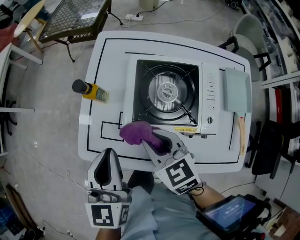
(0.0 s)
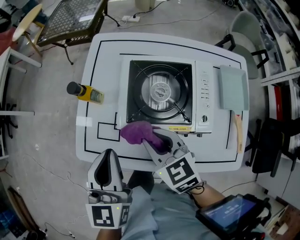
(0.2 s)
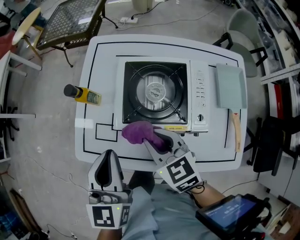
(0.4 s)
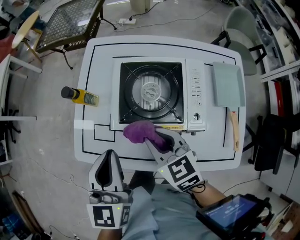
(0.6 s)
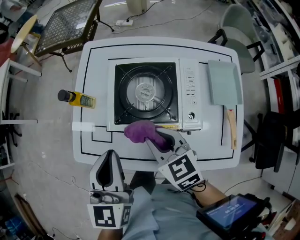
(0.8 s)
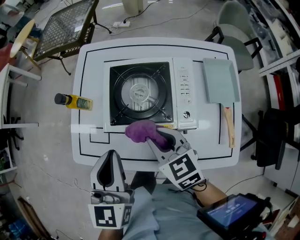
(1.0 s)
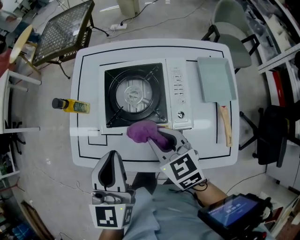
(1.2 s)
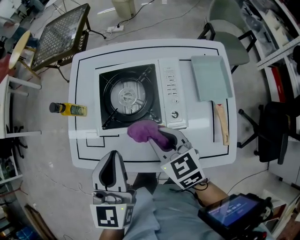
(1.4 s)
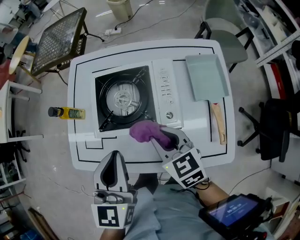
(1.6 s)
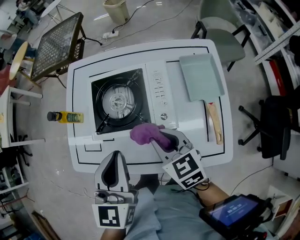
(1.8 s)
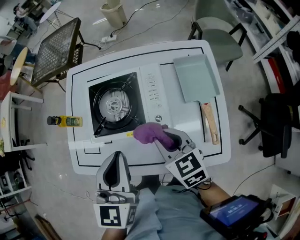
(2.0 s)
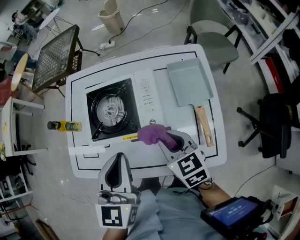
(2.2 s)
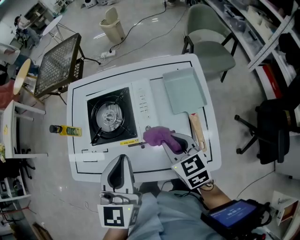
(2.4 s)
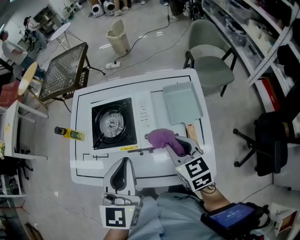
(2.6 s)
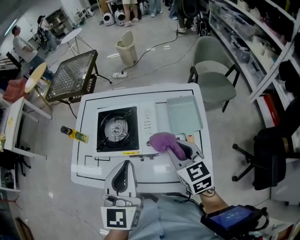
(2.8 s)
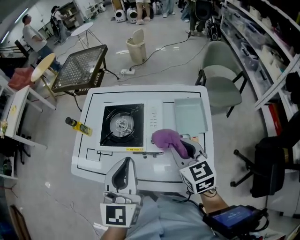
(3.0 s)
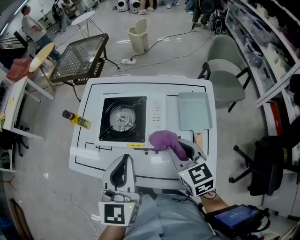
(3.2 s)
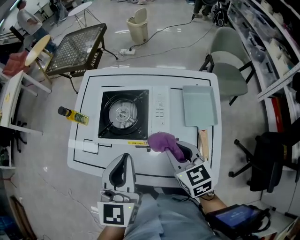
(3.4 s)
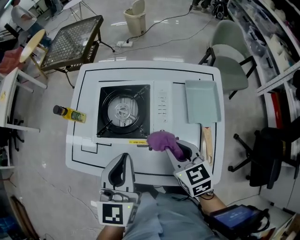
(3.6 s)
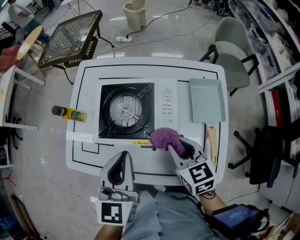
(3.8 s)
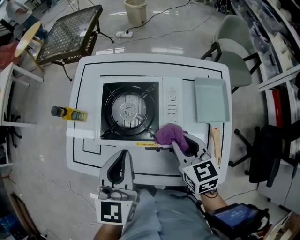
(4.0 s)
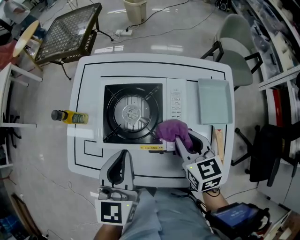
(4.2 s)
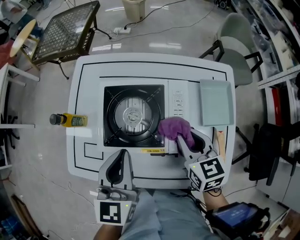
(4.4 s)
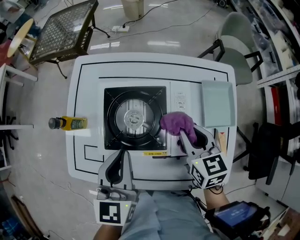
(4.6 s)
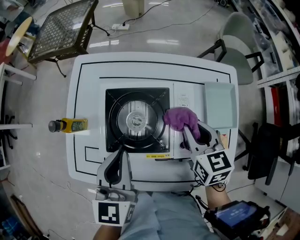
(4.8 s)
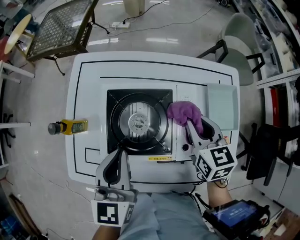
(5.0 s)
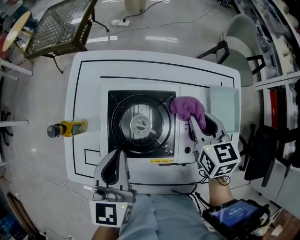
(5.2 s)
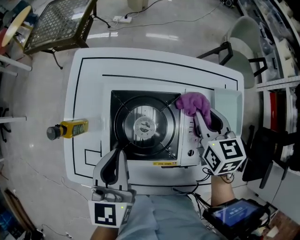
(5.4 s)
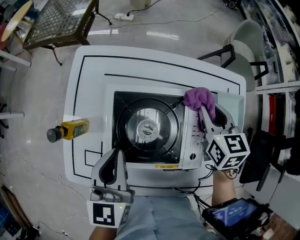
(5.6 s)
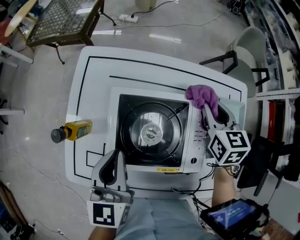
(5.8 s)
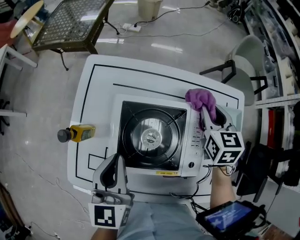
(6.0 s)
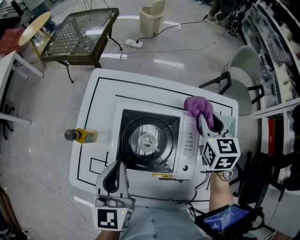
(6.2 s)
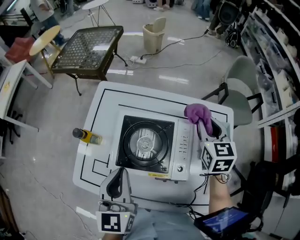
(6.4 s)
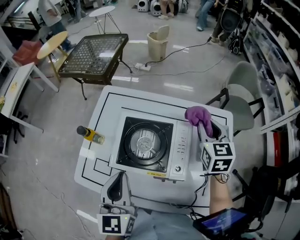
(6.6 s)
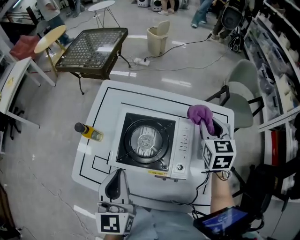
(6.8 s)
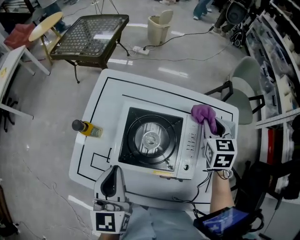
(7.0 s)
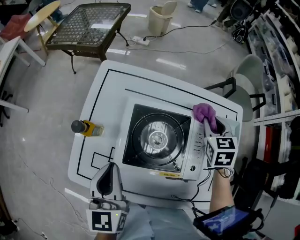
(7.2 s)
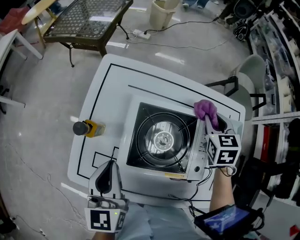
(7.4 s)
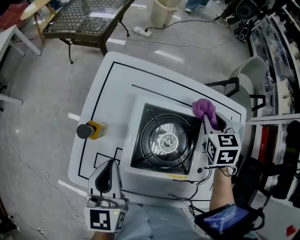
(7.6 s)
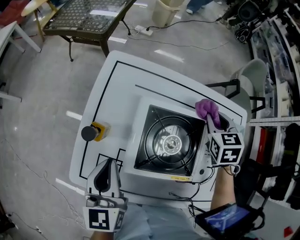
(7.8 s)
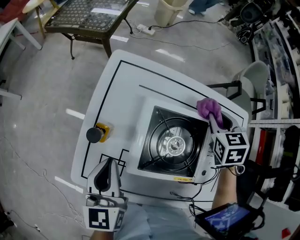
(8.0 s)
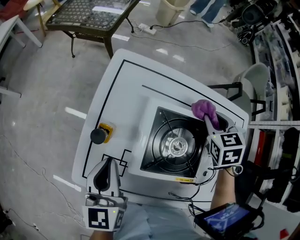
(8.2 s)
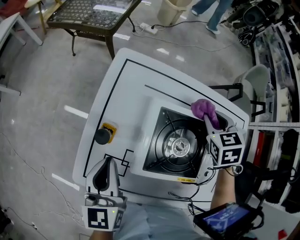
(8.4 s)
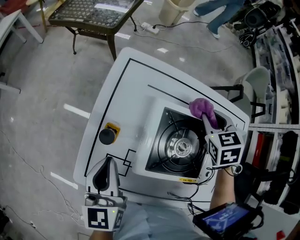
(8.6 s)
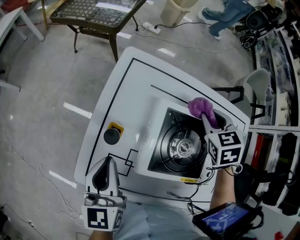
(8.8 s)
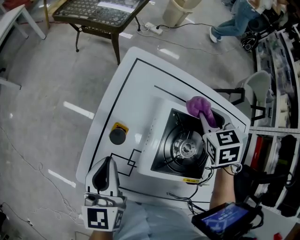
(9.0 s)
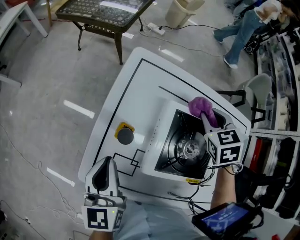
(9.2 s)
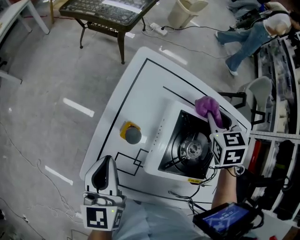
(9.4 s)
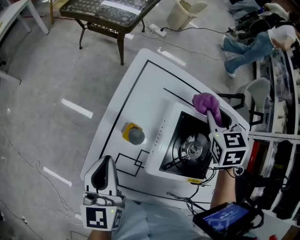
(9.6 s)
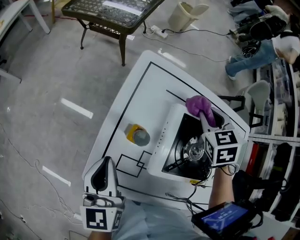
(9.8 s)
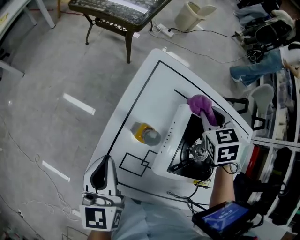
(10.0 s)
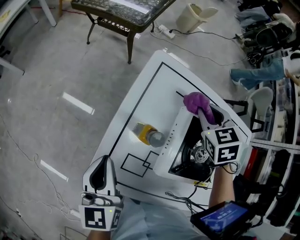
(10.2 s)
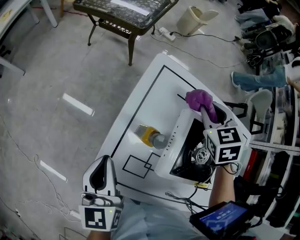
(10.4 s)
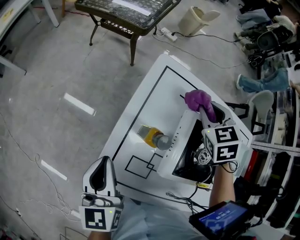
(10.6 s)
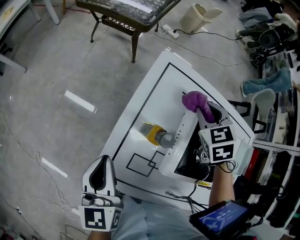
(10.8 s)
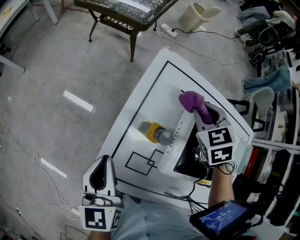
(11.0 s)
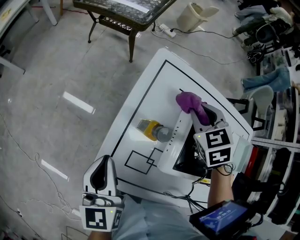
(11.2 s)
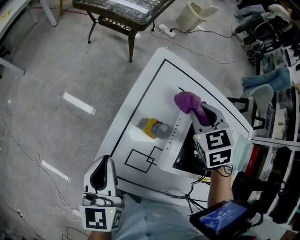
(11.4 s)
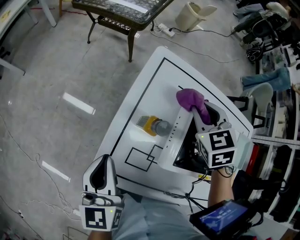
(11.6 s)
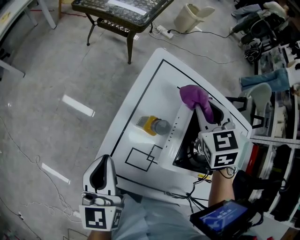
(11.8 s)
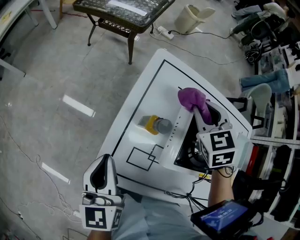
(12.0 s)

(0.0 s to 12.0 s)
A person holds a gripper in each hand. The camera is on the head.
0.0 s - 1.6 s: The grippers both shift to the right by some 15 cm.
1.6 s - 3.0 s: The right gripper travels to the right and upward by roughly 20 cm; the left gripper moves to the right, upward and backward, approximately 15 cm.
3.0 s - 4.4 s: The right gripper travels downward, forward and to the left by some 15 cm. The left gripper goes approximately 20 cm forward, downward and to the left.
4.4 s - 6.0 s: The right gripper shifts about 20 cm forward; the left gripper is displaced to the left and forward by some 10 cm.
6.0 s - 7.6 s: The right gripper shifts approximately 5 cm to the left, and reaches roughly 10 cm upward, then returns. Meanwhile the left gripper shifts about 10 cm to the left.
7.6 s - 9.0 s: The two grippers go approximately 10 cm to the left.
9.0 s - 10.4 s: Both grippers move to the left, about 10 cm.
10.4 s - 12.0 s: The right gripper changes place by approximately 5 cm.

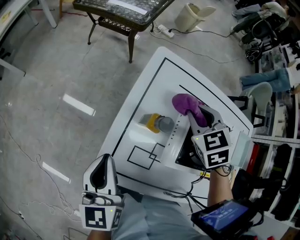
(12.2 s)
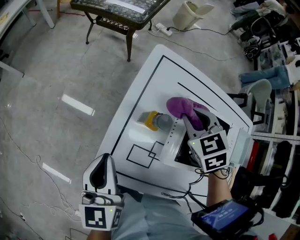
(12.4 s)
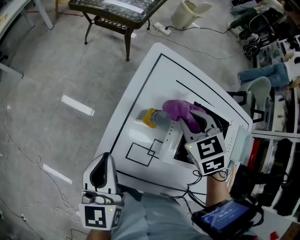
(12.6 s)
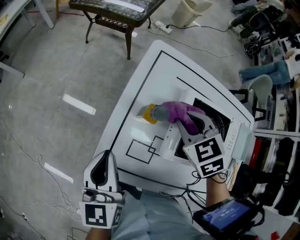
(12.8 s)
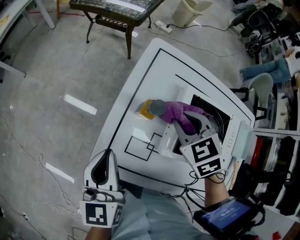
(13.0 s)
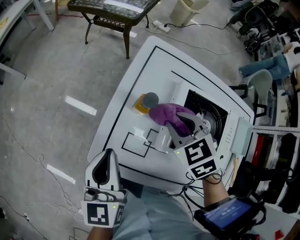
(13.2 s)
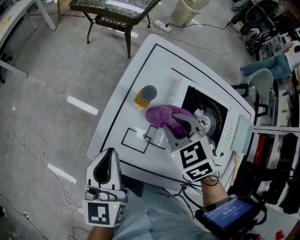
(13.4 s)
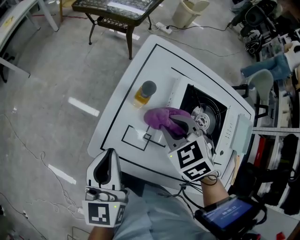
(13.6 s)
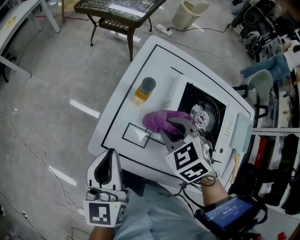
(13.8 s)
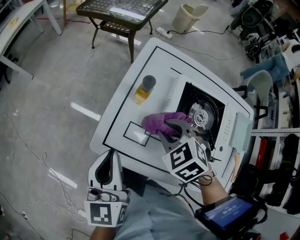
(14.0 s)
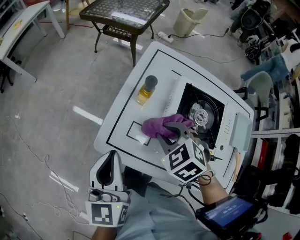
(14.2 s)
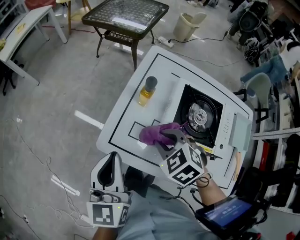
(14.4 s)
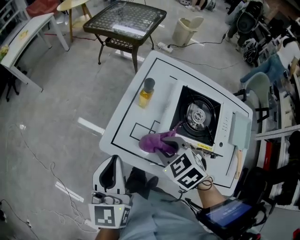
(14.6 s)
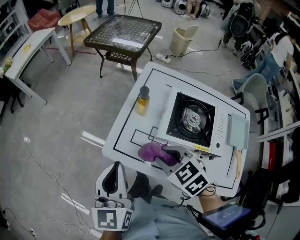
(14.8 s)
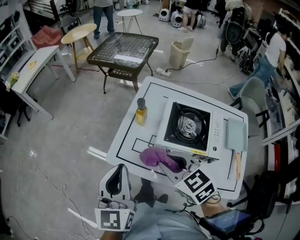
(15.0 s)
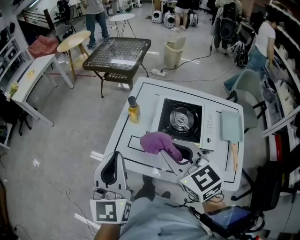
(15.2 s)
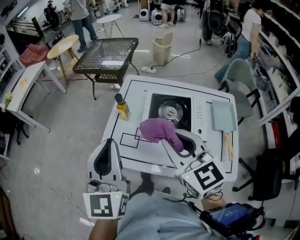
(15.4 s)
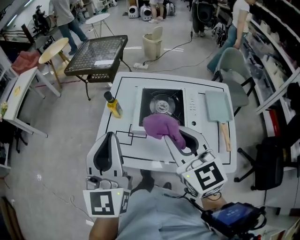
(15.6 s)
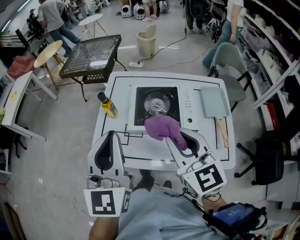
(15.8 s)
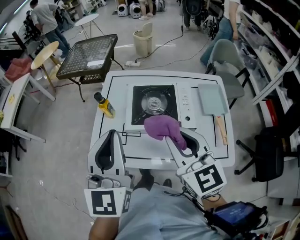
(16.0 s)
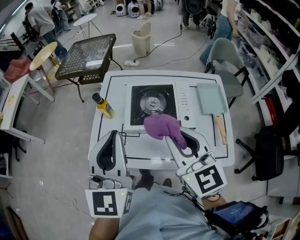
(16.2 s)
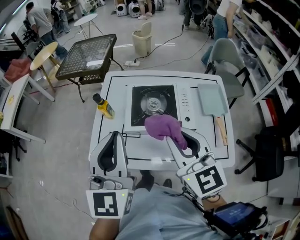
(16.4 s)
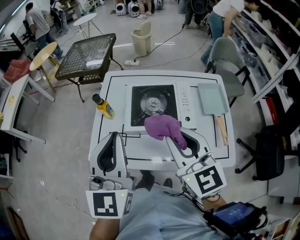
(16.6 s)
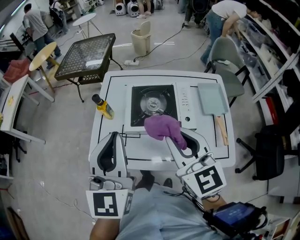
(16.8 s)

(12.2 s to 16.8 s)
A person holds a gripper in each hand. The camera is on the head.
12.2 s - 13.8 s: The right gripper shifts some 15 cm backward and to the left. The left gripper is displaced backward by approximately 10 cm.
13.8 s - 15.2 s: Both grippers move upward and backward, some 25 cm. The left gripper rotates roughly 20 degrees, while the right gripper tilts its fingers some 40 degrees upward.
15.2 s - 16.8 s: The grippers both shift to the right by roughly 10 cm. The right gripper rotates roughly 30 degrees.

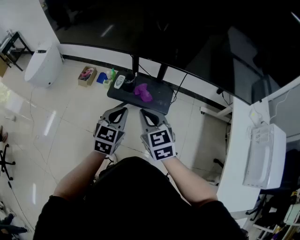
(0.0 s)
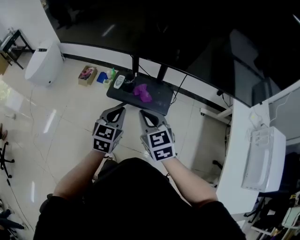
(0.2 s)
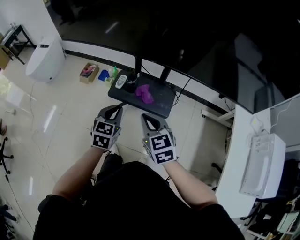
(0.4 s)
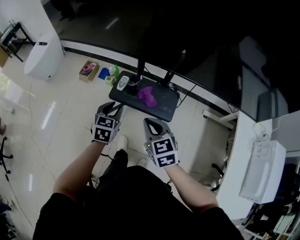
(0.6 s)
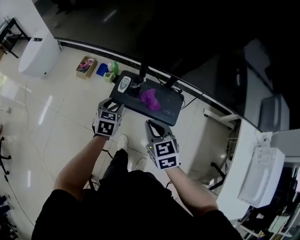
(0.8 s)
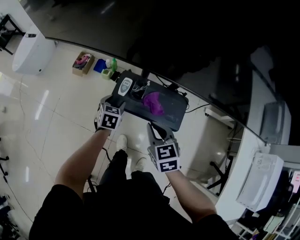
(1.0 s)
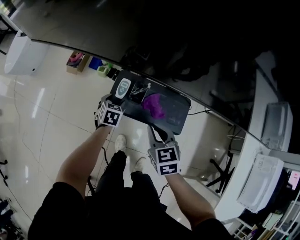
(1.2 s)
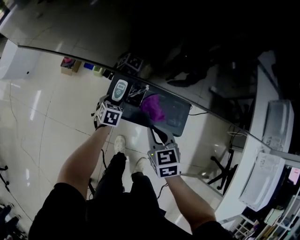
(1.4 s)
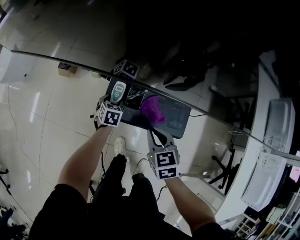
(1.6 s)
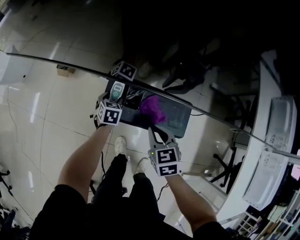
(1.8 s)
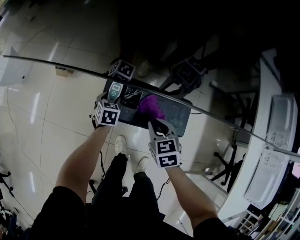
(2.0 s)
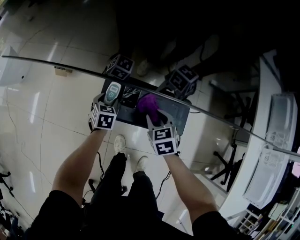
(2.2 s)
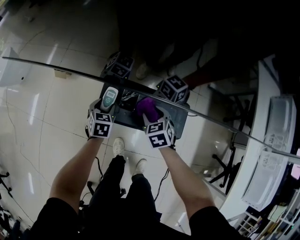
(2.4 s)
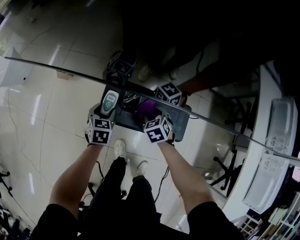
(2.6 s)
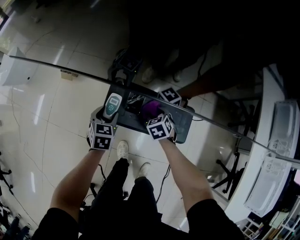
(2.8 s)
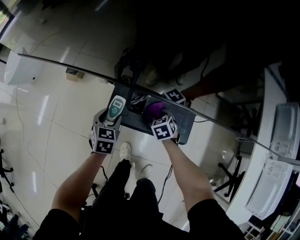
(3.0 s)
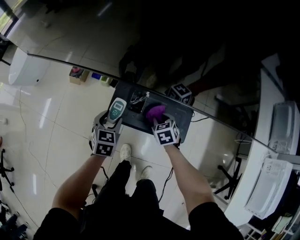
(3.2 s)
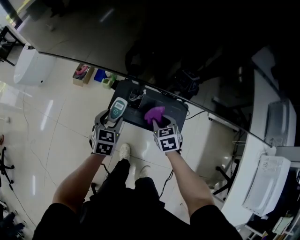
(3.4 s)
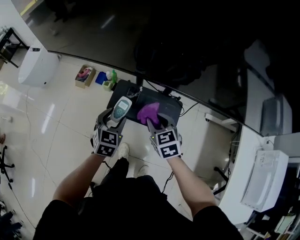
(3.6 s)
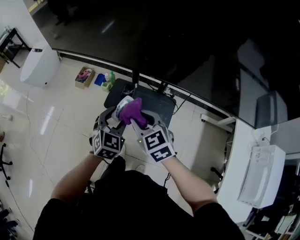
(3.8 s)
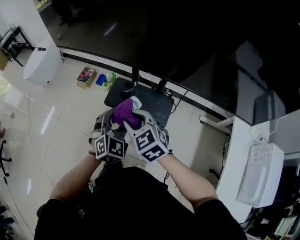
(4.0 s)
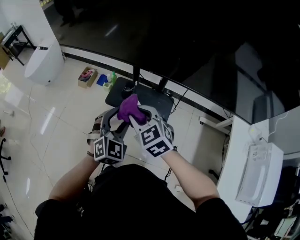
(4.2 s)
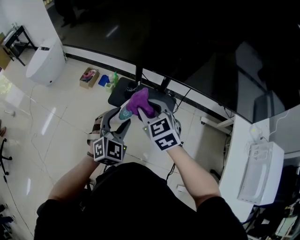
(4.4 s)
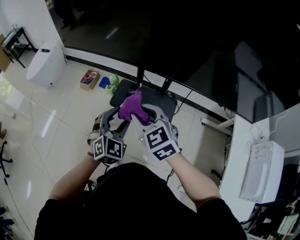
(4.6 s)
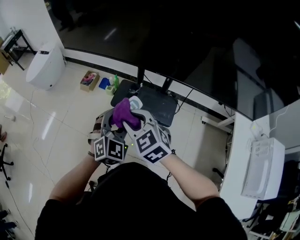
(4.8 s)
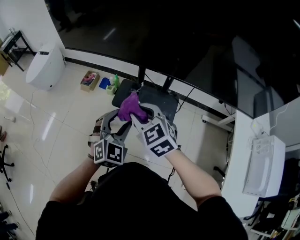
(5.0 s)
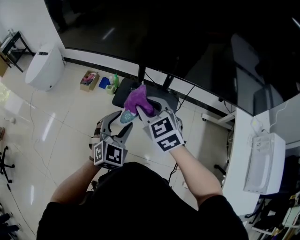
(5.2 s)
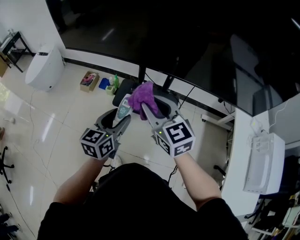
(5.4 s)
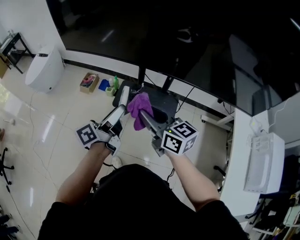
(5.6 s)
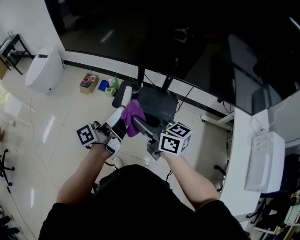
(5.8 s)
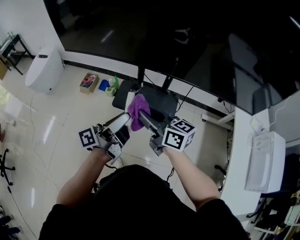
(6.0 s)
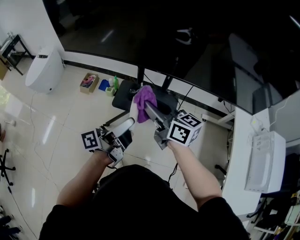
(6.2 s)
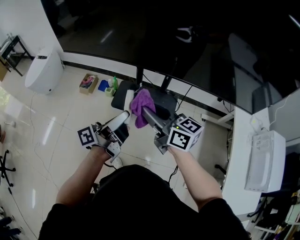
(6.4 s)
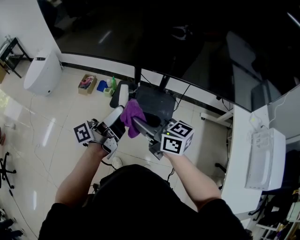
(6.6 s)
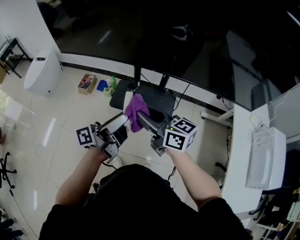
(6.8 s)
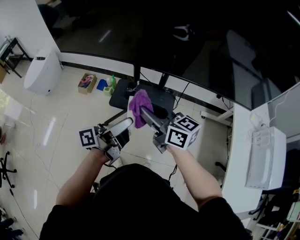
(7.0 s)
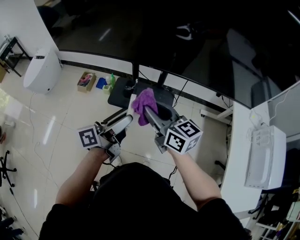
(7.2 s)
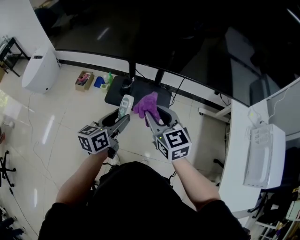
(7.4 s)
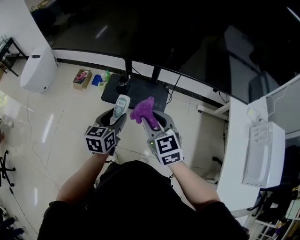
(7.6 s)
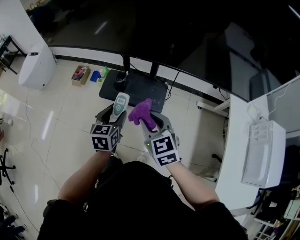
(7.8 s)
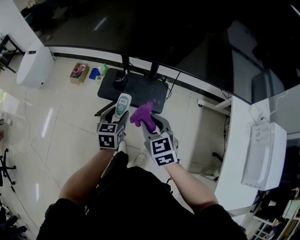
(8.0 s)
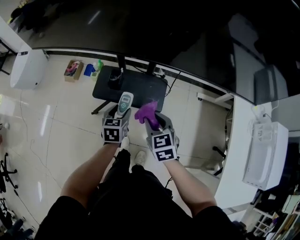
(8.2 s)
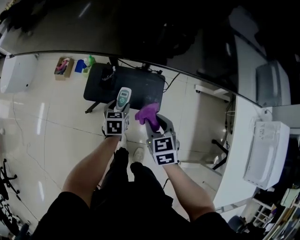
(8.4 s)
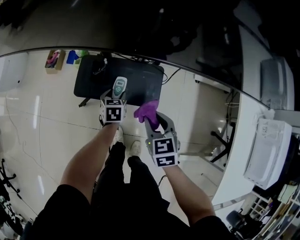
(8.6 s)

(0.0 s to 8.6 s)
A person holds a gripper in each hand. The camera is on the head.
0.0 s - 1.4 s: The left gripper is displaced downward and forward by roughly 50 cm, tilts its fingers about 30 degrees downward, and opens its fingers; the right gripper moves downward and forward, roughly 30 cm, and rotates some 20 degrees.
1.4 s - 2.8 s: The right gripper heads downward and forward, covering some 20 cm, changes its angle by approximately 20 degrees, and opens, while the left gripper heads upward, covering about 5 cm.
2.8 s - 4.4 s: The grippers both shift upward and backward by approximately 40 cm. The left gripper rotates roughly 40 degrees, while the right gripper angles its fingers upward, by approximately 30 degrees, and closes up.
4.4 s - 5.8 s: The right gripper shifts some 10 cm to the left and backward, and turns by roughly 50 degrees. The left gripper moves upward and to the left, some 10 cm, and rotates around the line of its fingers by some 100 degrees, counterclockwise from behind.
5.8 s - 7.2 s: The grippers both shift to the right by some 5 cm.
7.2 s - 8.6 s: The left gripper travels downward and forward by approximately 40 cm, and tilts its fingers about 60 degrees downward, while the right gripper travels downward by about 25 cm, and tilts its fingers roughly 40 degrees downward.
